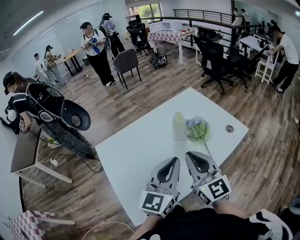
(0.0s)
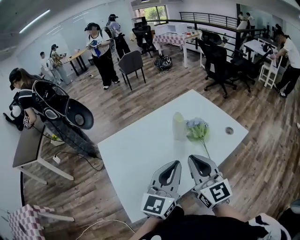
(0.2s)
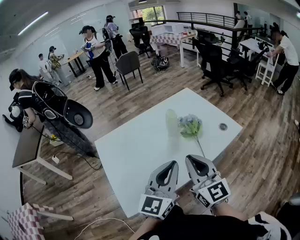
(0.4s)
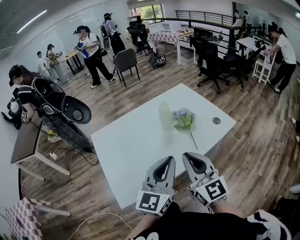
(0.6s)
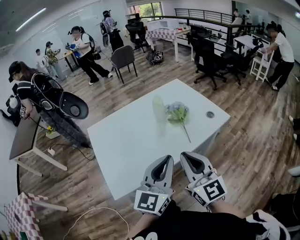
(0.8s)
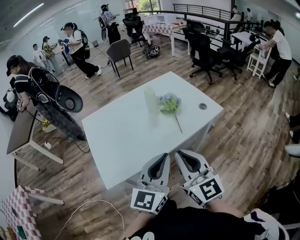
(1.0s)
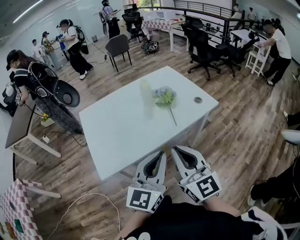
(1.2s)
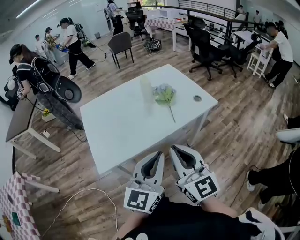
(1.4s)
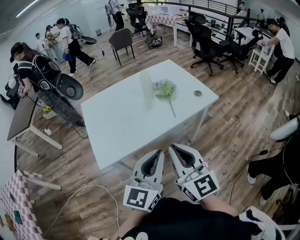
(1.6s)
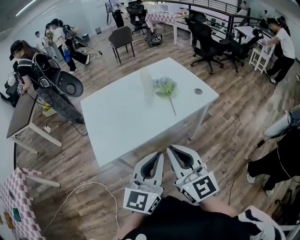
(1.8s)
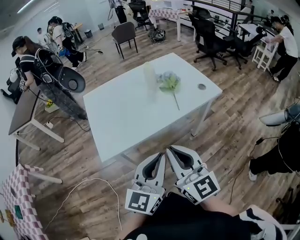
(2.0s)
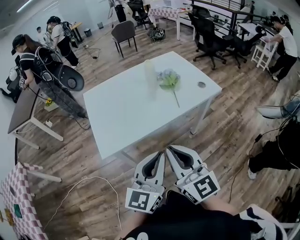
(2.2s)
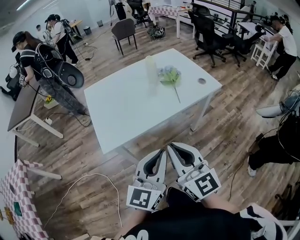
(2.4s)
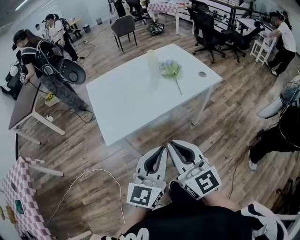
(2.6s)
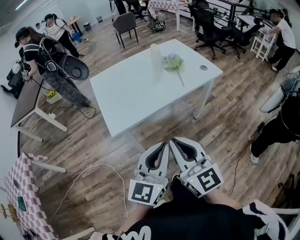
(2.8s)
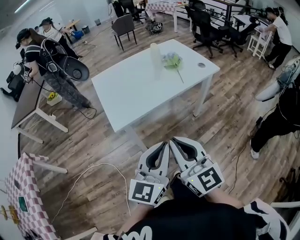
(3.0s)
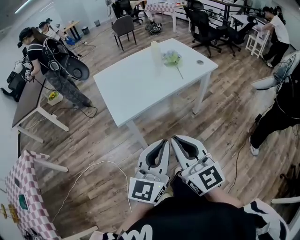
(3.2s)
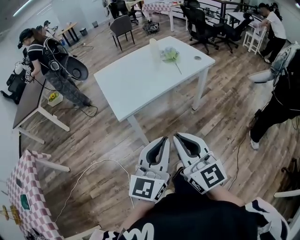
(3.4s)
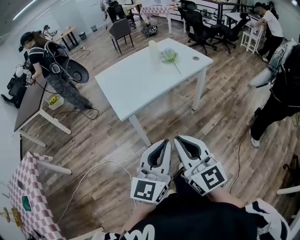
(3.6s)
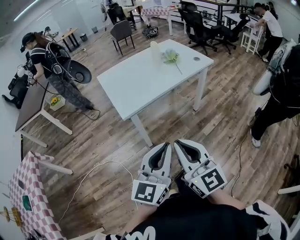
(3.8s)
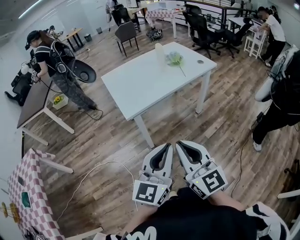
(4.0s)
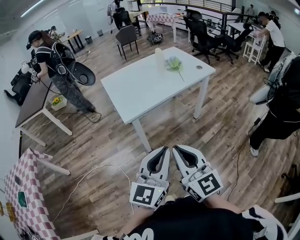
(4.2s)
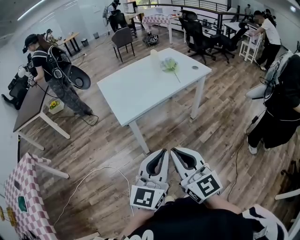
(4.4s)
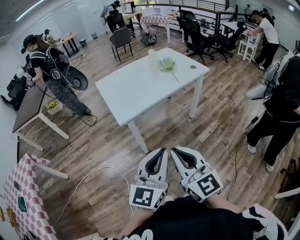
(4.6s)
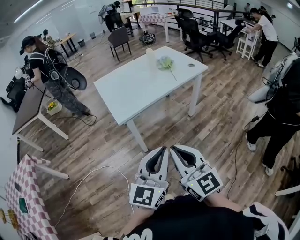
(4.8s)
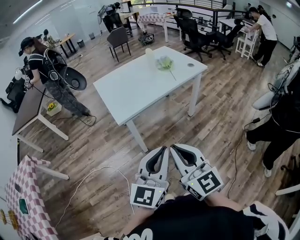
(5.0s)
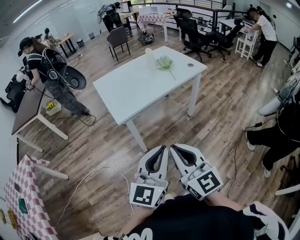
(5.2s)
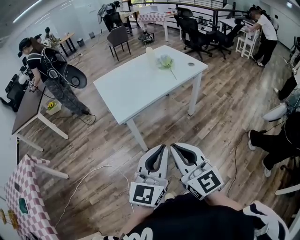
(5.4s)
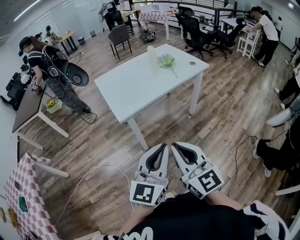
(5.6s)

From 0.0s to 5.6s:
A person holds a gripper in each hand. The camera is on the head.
From 0.0s to 1.4s: Both grippers travel together backward and to the right, roughly 25 cm.
From 1.4s to 2.8s: The two grippers go approximately 15 cm backward and to the left.
From 2.8s to 4.2s: The two grippers go about 15 cm backward.
From 4.2s to 5.6s: The grippers stay close to where they were, moving slightly.

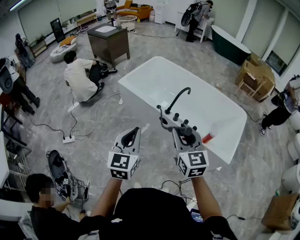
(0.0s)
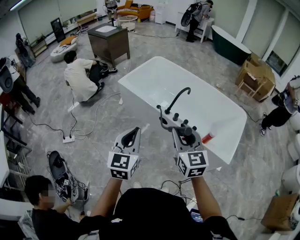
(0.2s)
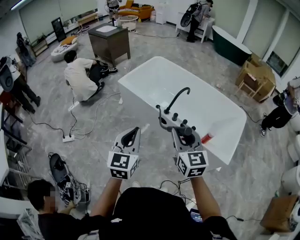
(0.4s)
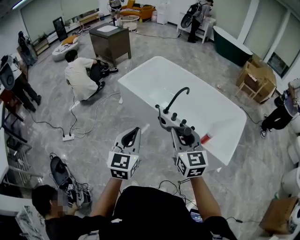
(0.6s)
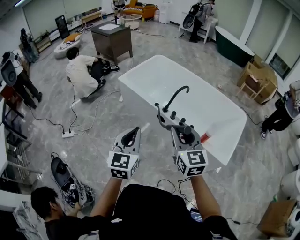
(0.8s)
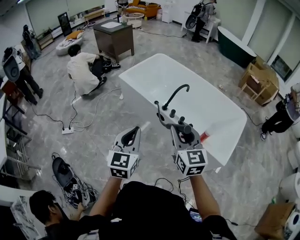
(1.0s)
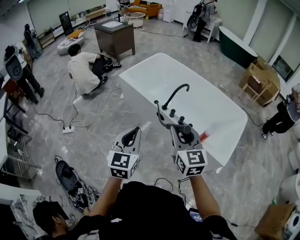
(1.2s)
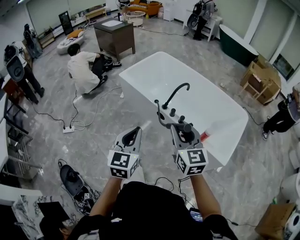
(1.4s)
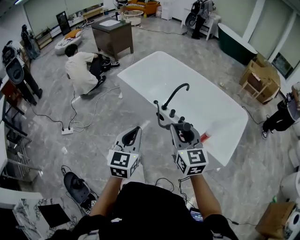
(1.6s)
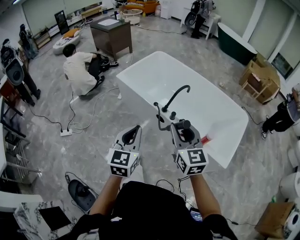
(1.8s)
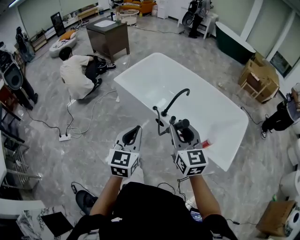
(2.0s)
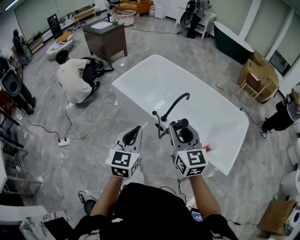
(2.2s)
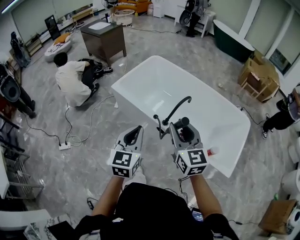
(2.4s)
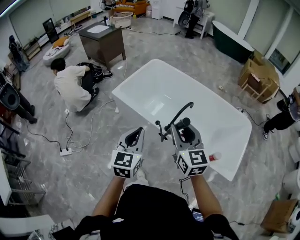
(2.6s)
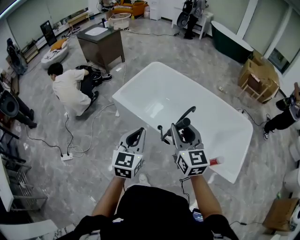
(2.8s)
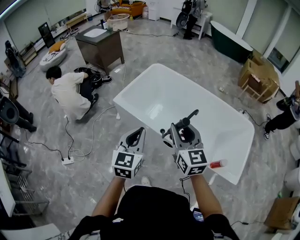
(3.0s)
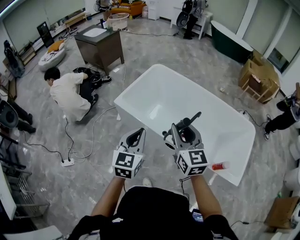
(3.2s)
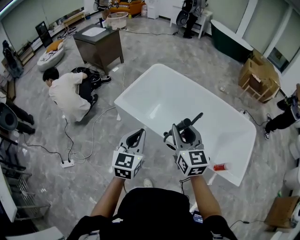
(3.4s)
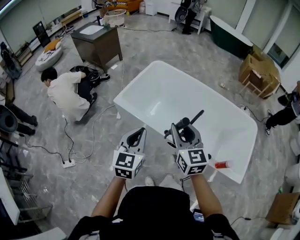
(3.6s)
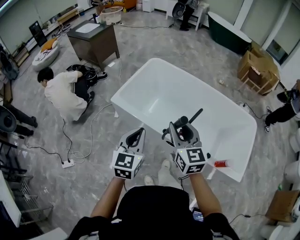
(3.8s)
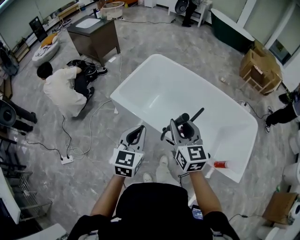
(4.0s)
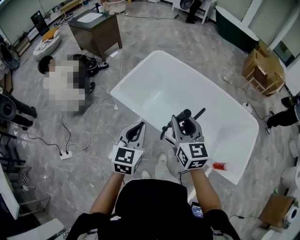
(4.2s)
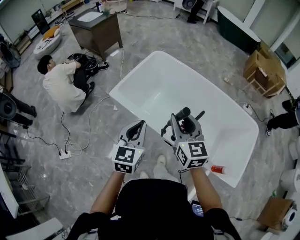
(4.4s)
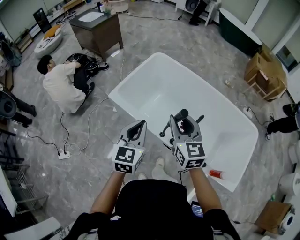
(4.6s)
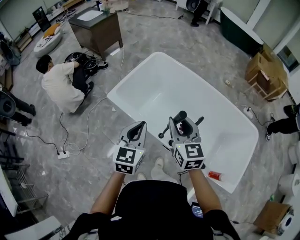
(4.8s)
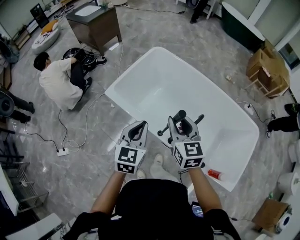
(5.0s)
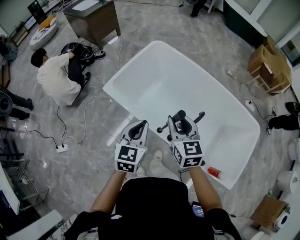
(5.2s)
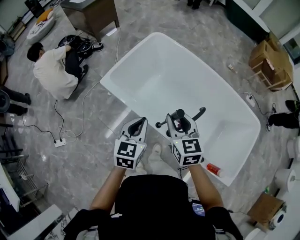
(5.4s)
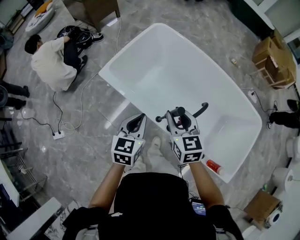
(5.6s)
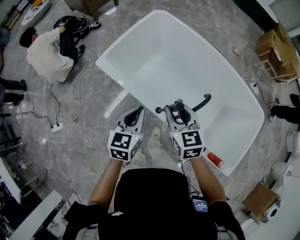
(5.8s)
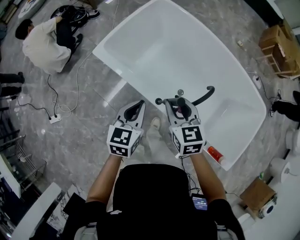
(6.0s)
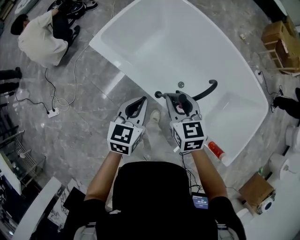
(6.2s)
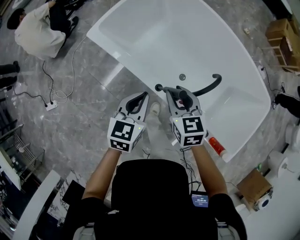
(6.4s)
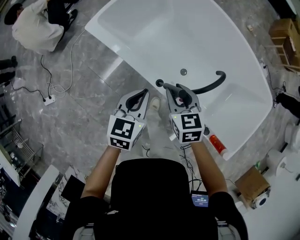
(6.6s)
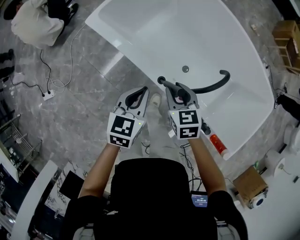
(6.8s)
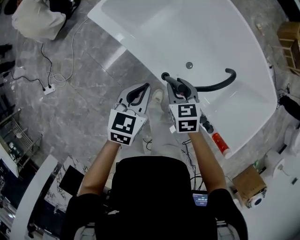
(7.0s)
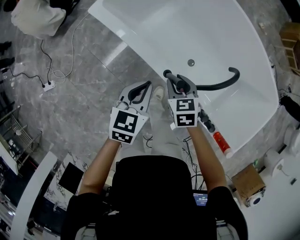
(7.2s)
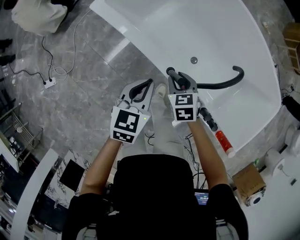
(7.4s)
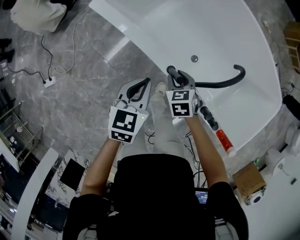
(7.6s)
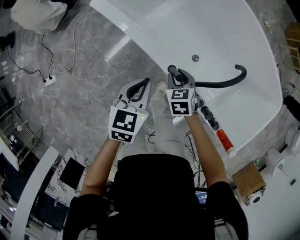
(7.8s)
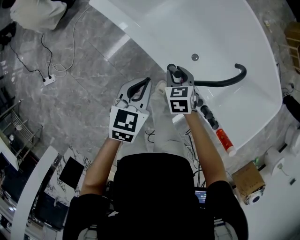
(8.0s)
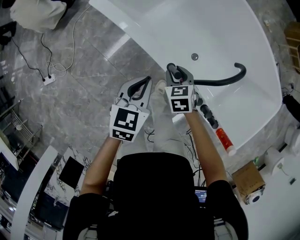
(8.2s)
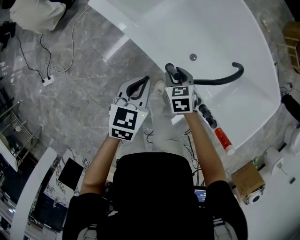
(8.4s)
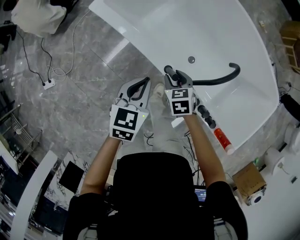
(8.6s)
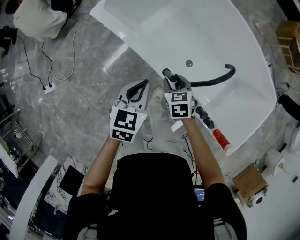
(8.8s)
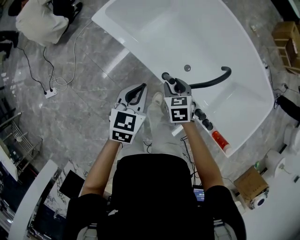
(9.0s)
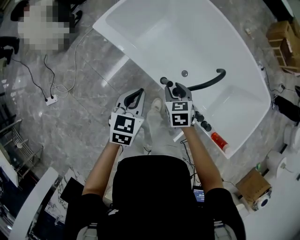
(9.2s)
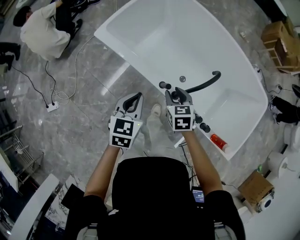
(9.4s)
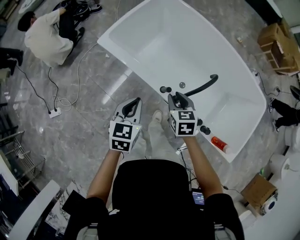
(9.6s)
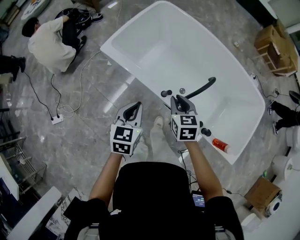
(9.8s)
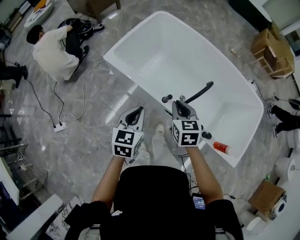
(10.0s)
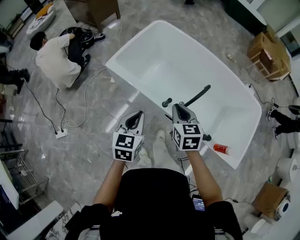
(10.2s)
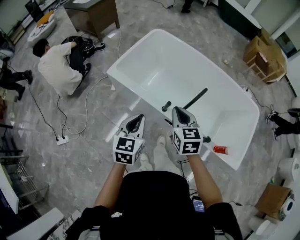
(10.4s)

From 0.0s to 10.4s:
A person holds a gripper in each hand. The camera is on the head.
From 0.0s to 1.4s: The grippers both shift to the right by roughly 5 cm.
From 1.4s to 3.0s: Both grippers travel together forward, approximately 35 cm.
From 3.0s to 4.4s: The grippers both shift forward by approximately 15 cm.
From 4.4s to 6.0s: The left gripper is displaced downward and forward by roughly 20 cm; the right gripper goes some 20 cm downward, and rotates about 20 degrees.
From 6.0s to 7.4s: The right gripper shifts roughly 25 cm downward, and turns by roughly 20 degrees; the left gripper goes some 15 cm downward.
From 7.4s to 9.0s: There are only small adjustments of the grippers.
From 9.0s to 10.4s: The left gripper goes roughly 20 cm upward and backward; the right gripper is displaced upward by approximately 30 cm, swivels some 30 degrees, and closes up.

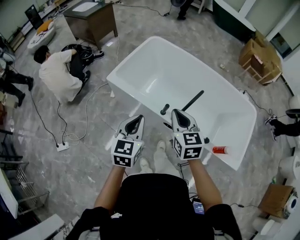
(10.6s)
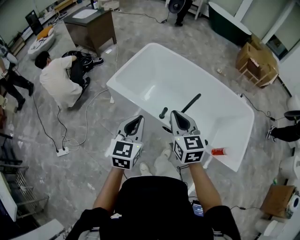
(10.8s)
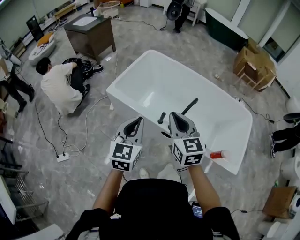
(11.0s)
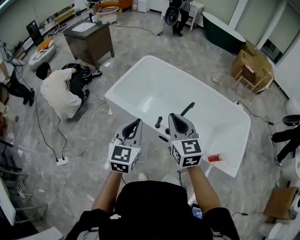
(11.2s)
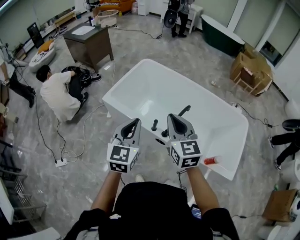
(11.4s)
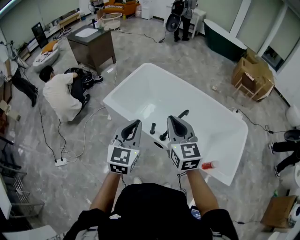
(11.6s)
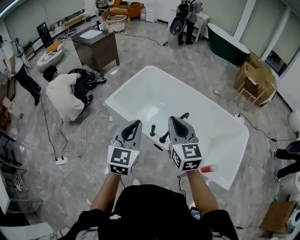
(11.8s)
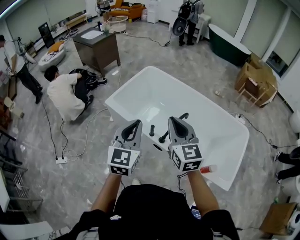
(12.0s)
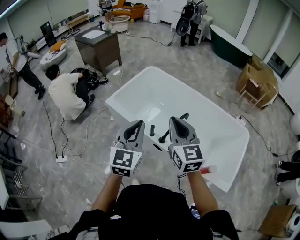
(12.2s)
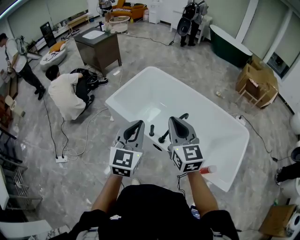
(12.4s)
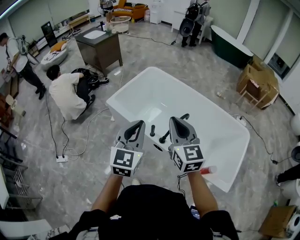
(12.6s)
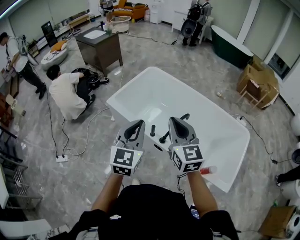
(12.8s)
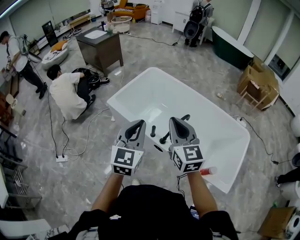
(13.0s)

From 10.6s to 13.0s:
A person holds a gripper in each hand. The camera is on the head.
From 10.6s to 11.8s: Both grippers travel together upward and to the right, some 15 cm.
From 11.8s to 13.0s: The grippers stay close to where they were, moving slightly.

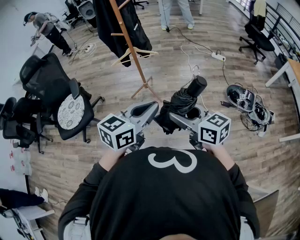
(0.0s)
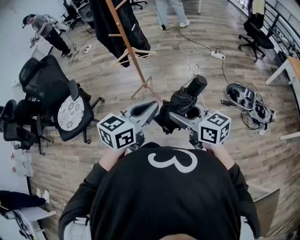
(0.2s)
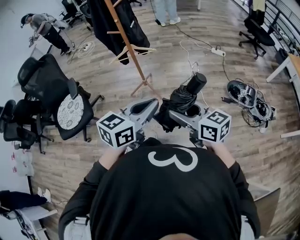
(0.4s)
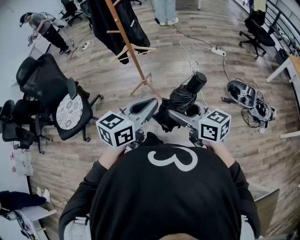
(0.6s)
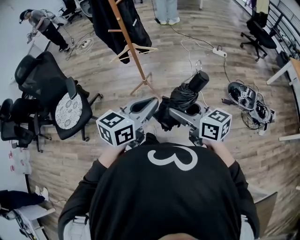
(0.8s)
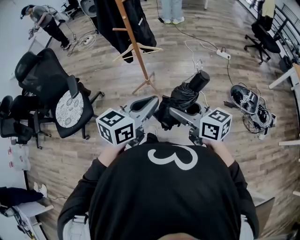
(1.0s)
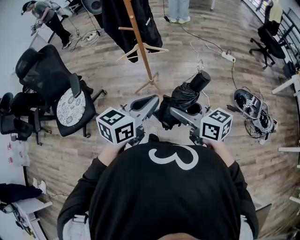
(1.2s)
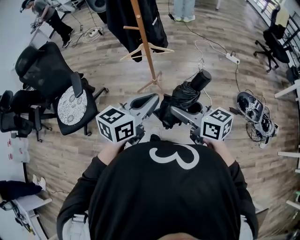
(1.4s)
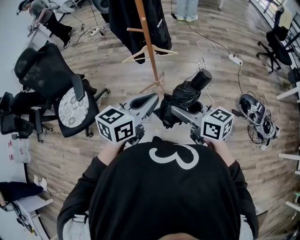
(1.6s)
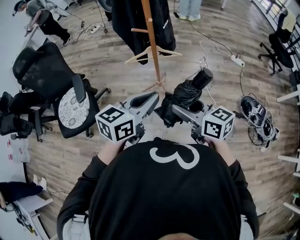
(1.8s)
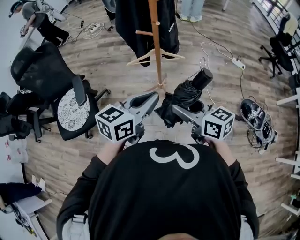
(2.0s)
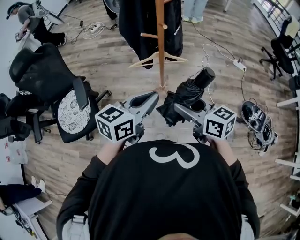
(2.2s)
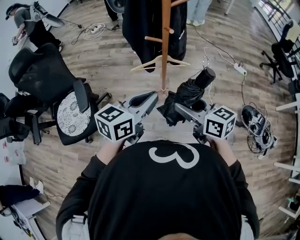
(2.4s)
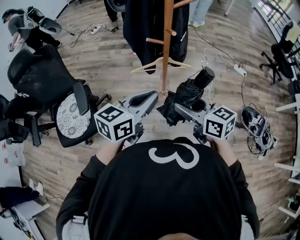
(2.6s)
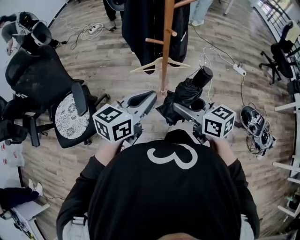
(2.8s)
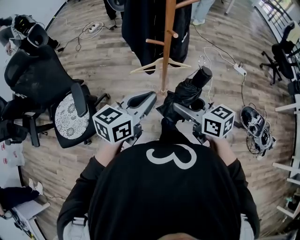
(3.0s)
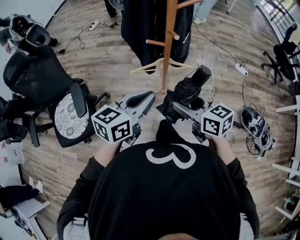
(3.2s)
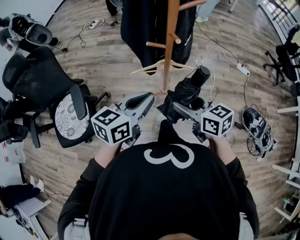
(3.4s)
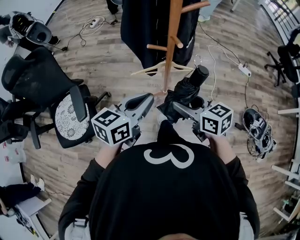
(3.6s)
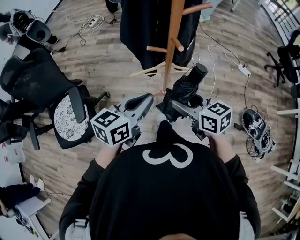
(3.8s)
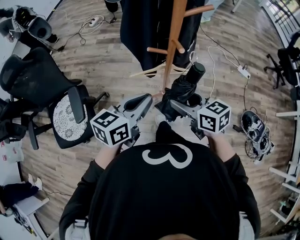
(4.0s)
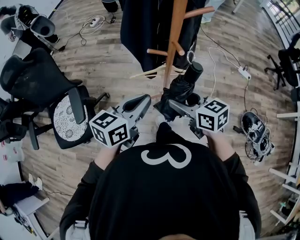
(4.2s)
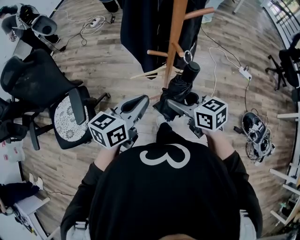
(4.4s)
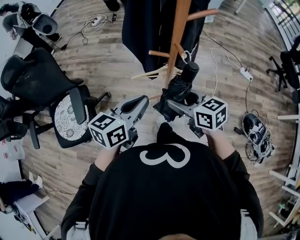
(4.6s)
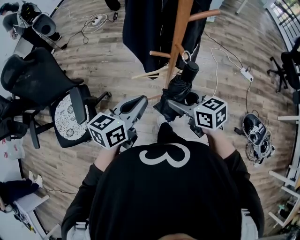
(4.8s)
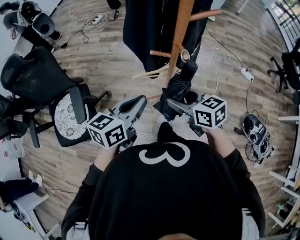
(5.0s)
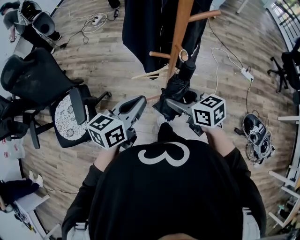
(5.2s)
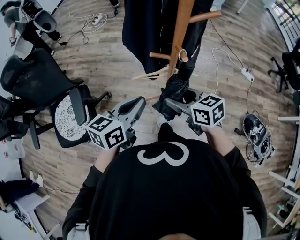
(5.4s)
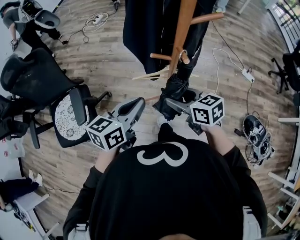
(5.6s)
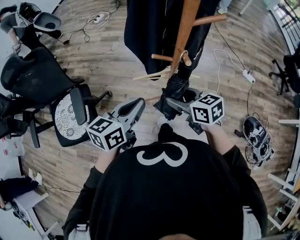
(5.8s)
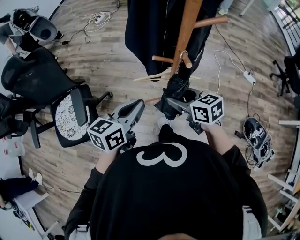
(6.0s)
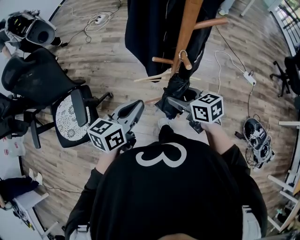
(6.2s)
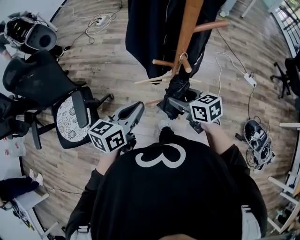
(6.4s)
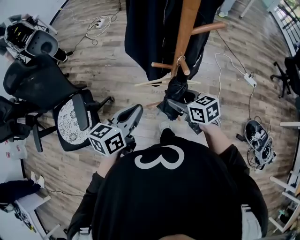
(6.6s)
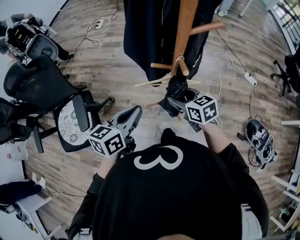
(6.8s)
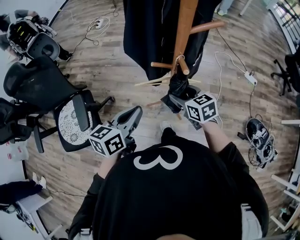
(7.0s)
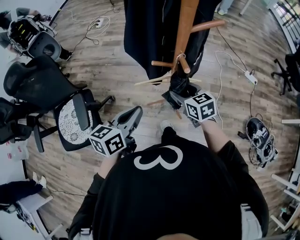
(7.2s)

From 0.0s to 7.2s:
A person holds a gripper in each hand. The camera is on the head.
From 0.0s to 1.4s: The two grippers go about 20 cm forward and to the left.
From 1.4s to 2.8s: The grippers both shift forward and to the left by roughly 20 cm.
From 2.8s to 4.4s: The two grippers go approximately 10 cm forward.
From 4.4s to 5.8s: There are only small adjustments of the grippers.
From 5.8s to 7.2s: The right gripper shifts some 5 cm forward.
